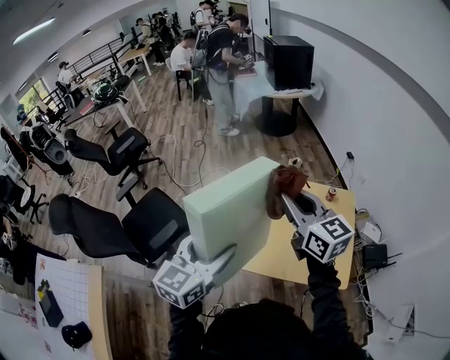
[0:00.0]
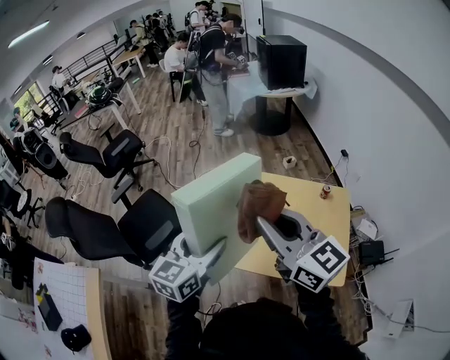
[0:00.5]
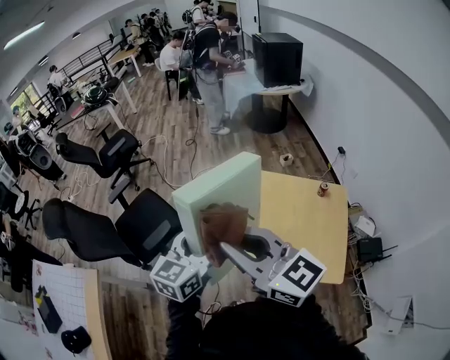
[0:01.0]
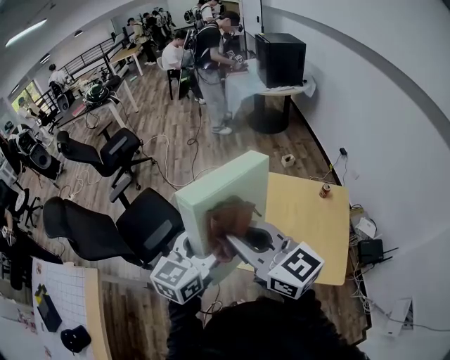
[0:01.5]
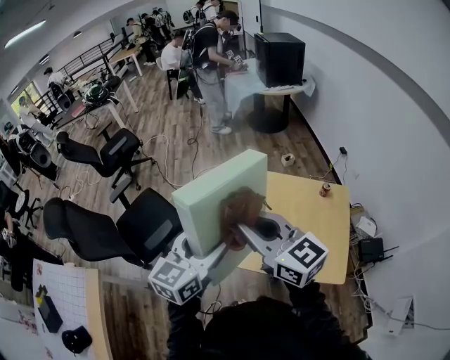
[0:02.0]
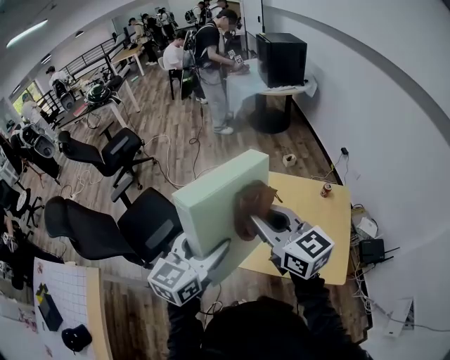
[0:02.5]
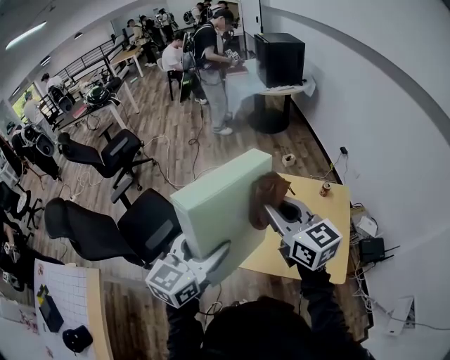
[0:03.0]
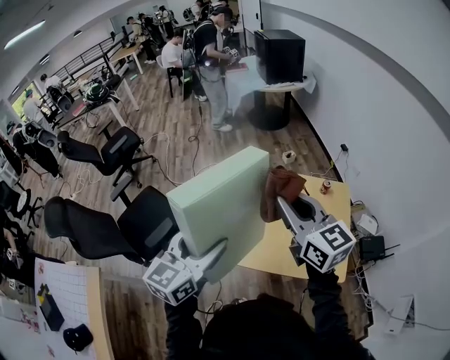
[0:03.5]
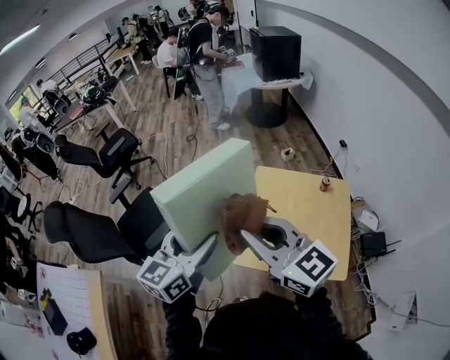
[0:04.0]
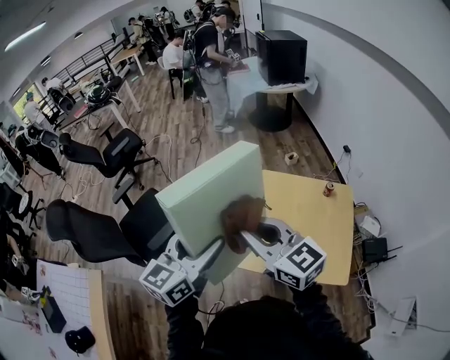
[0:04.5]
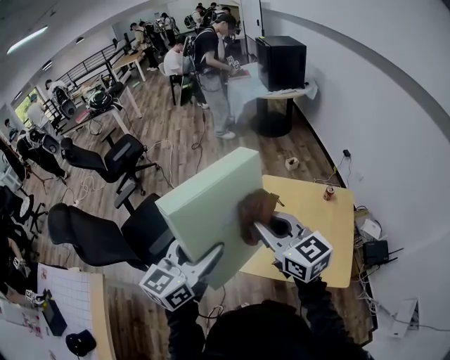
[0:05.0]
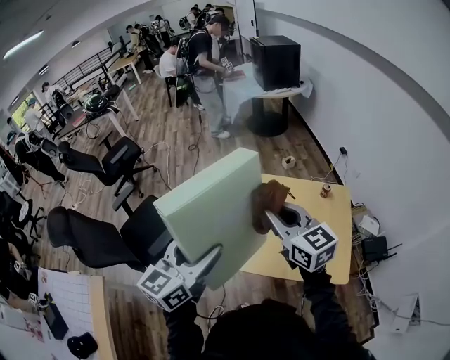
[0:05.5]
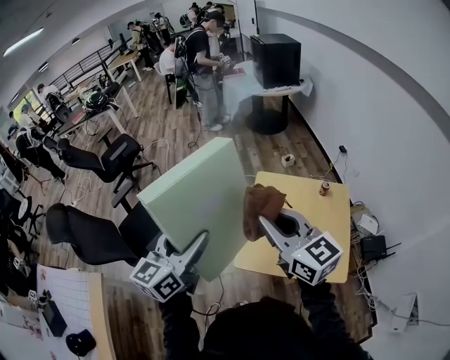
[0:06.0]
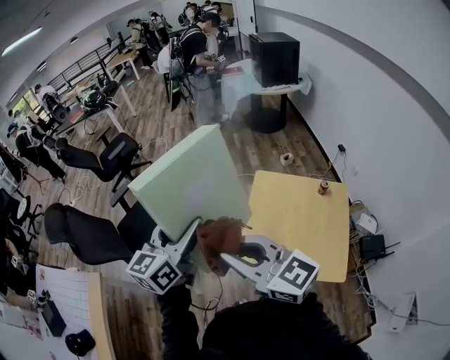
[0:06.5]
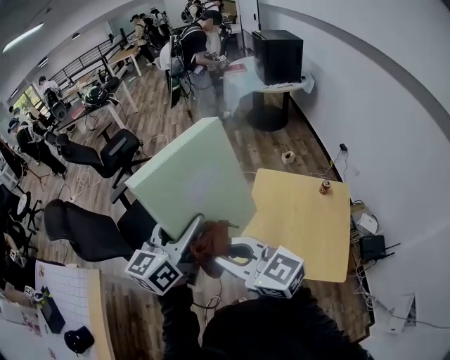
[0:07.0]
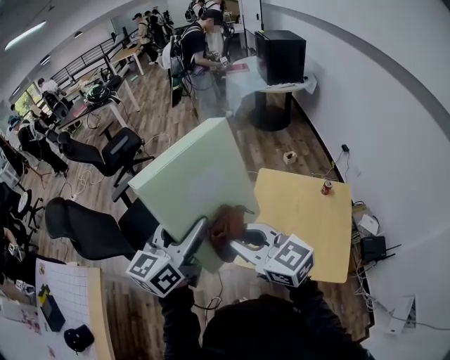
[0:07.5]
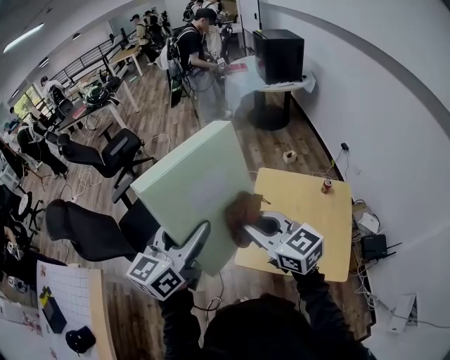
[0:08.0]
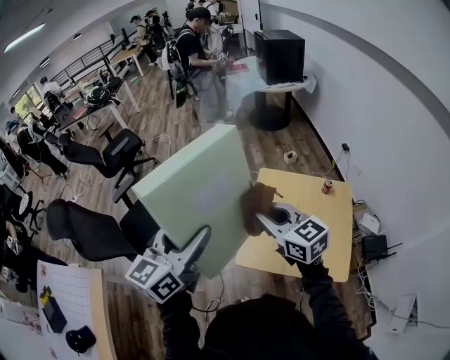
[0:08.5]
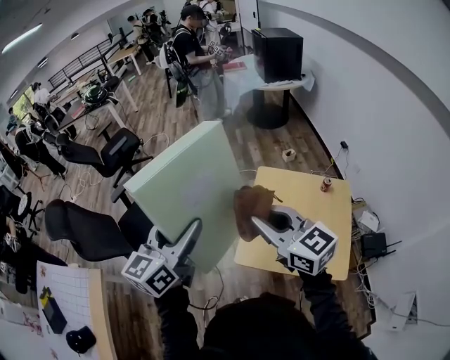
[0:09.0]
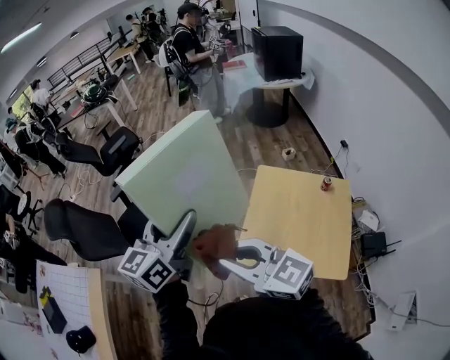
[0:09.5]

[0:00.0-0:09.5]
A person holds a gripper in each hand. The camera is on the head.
0.0 to 2.0 s: The right gripper heads to the left and backward, covering approximately 10 cm.
2.0 to 4.0 s: The right gripper moves approximately 10 cm to the right and comes back.
4.0 to 5.5 s: The right gripper is displaced forward, to the right and downward by approximately 10 cm.
5.5 to 7.5 s: The right gripper is displaced to the left and backward by about 15 cm, and changes its angle by some 30 degrees, while the left gripper moves roughly 5 cm.
7.5 to 9.5 s: The right gripper moves approximately 10 cm to the right and comes back.

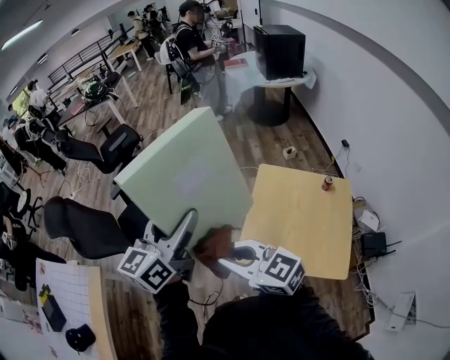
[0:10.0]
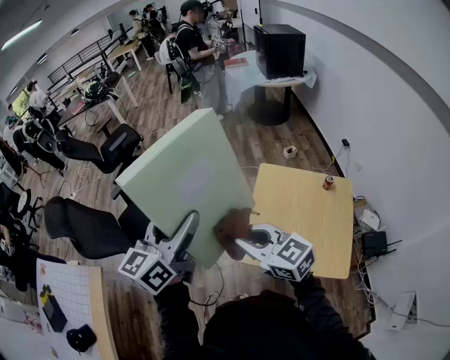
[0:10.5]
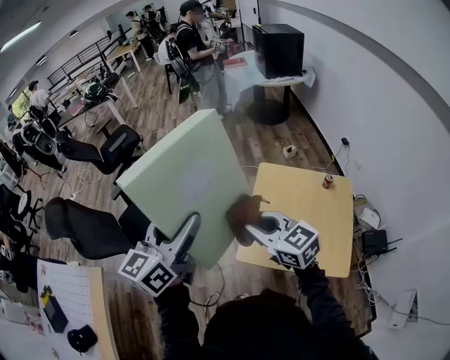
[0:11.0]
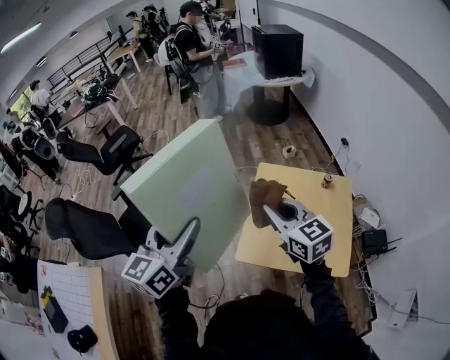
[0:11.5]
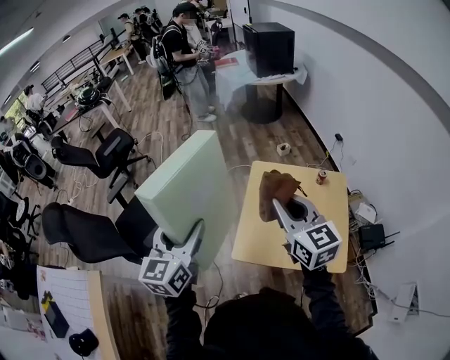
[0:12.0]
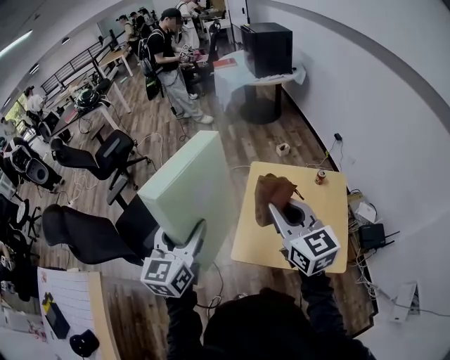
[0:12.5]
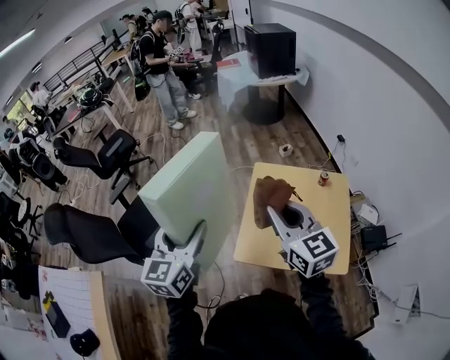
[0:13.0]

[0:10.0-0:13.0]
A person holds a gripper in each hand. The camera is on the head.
10.0 to 11.5 s: The right gripper is displaced to the right and forward by some 20 cm, and rotates some 30 degrees.
11.5 to 13.0 s: The right gripper changes place by roughly 5 cm; the left gripper ends up roughly 5 cm from where it was.

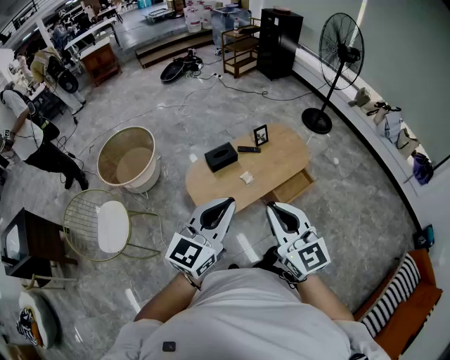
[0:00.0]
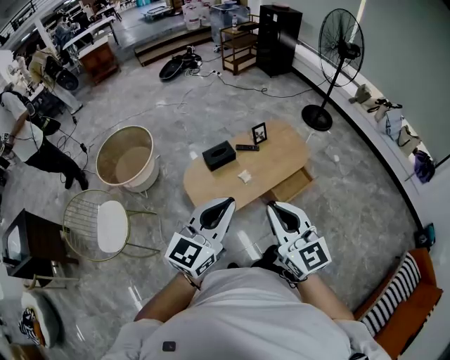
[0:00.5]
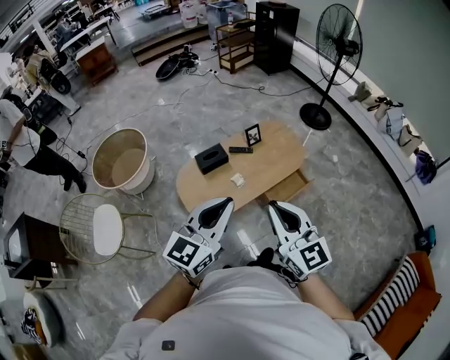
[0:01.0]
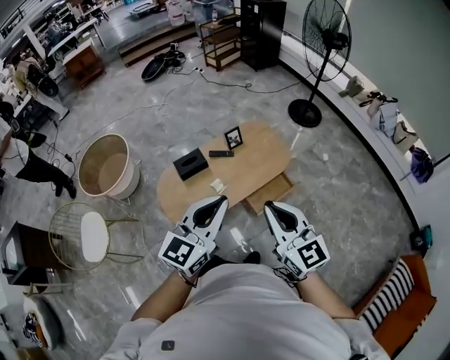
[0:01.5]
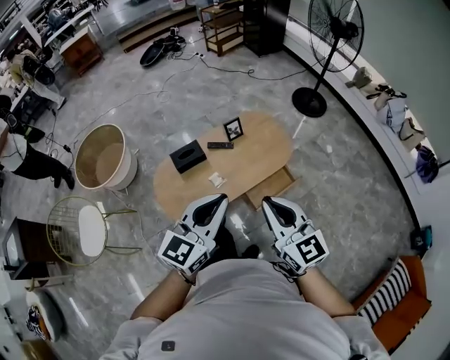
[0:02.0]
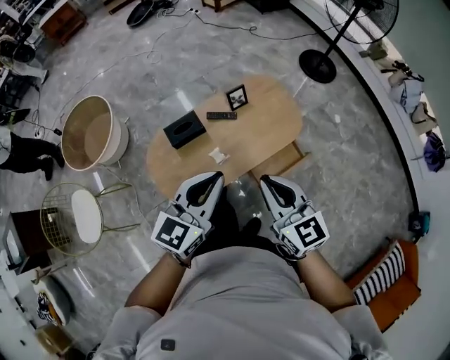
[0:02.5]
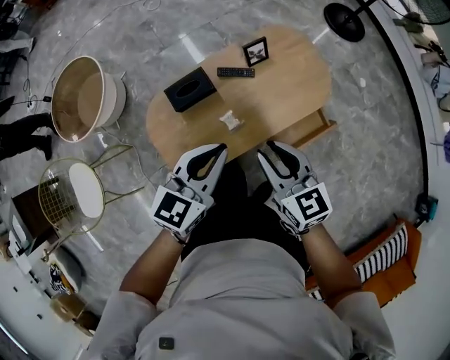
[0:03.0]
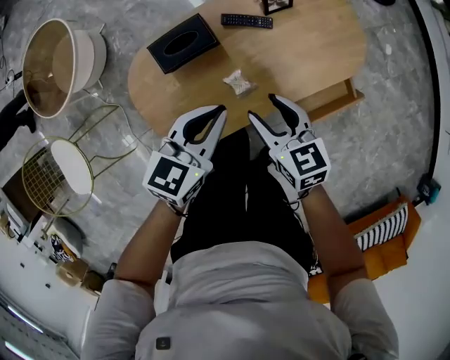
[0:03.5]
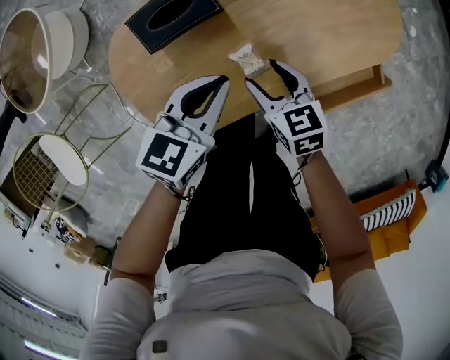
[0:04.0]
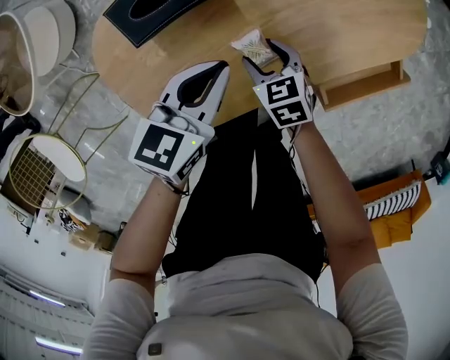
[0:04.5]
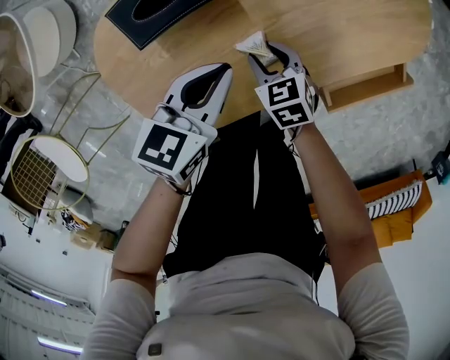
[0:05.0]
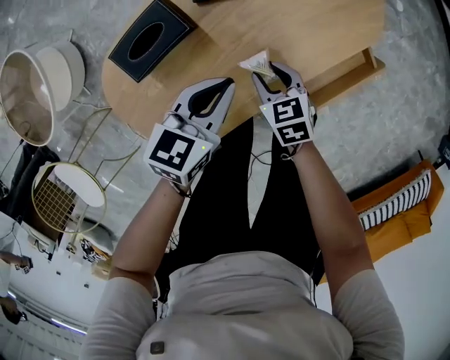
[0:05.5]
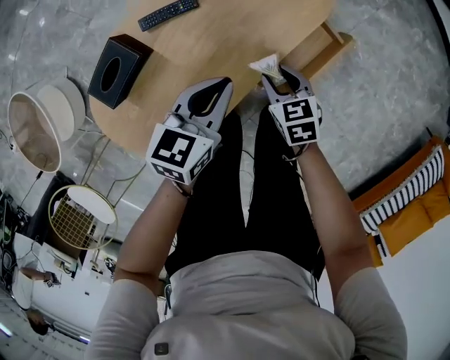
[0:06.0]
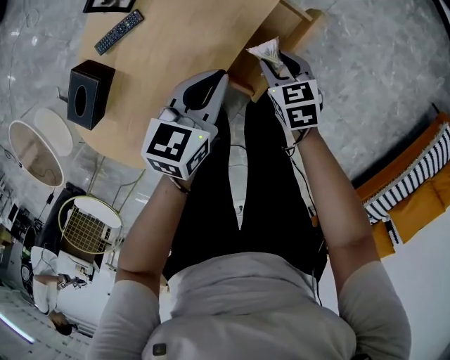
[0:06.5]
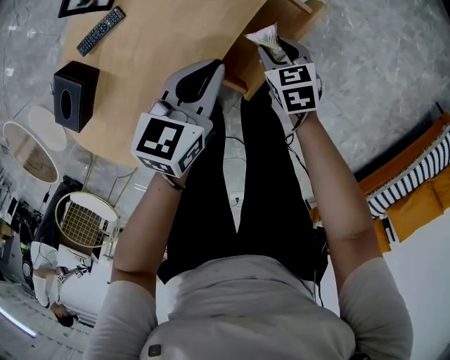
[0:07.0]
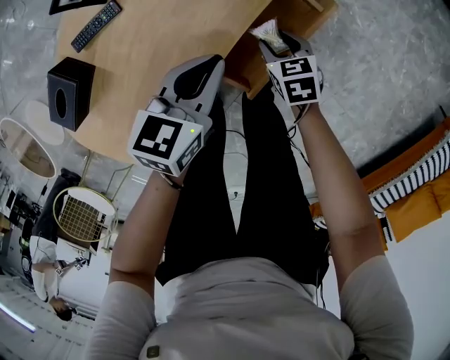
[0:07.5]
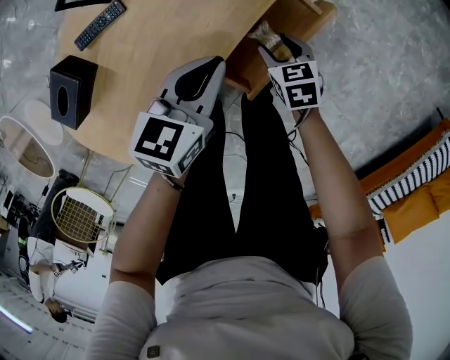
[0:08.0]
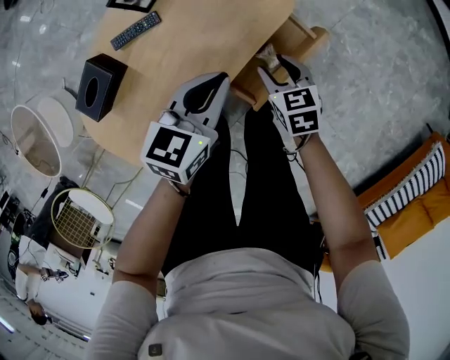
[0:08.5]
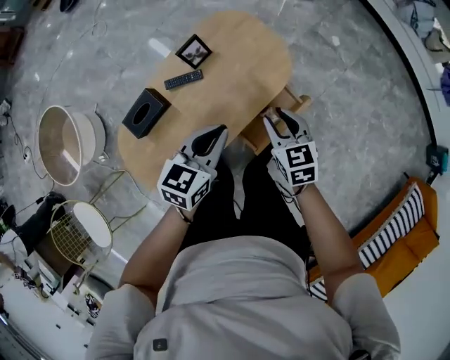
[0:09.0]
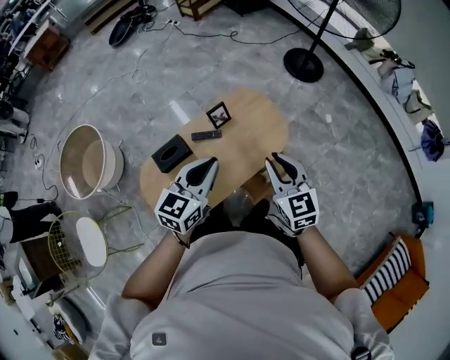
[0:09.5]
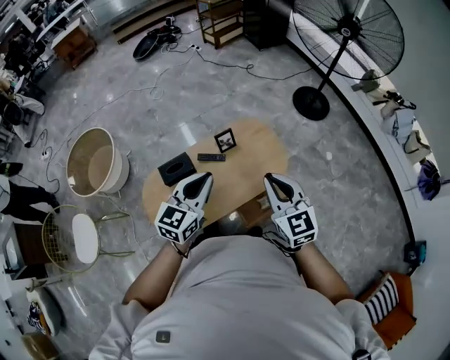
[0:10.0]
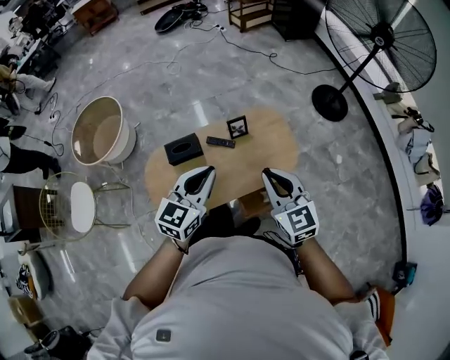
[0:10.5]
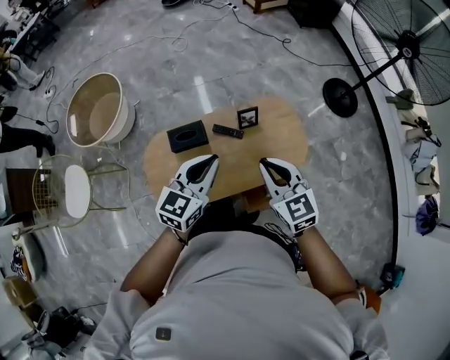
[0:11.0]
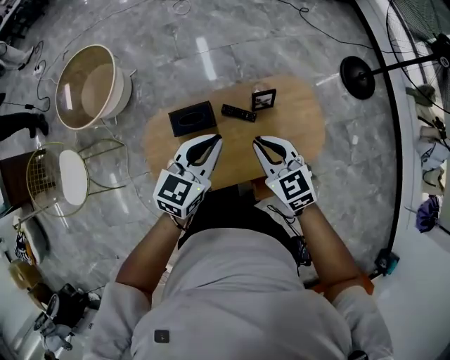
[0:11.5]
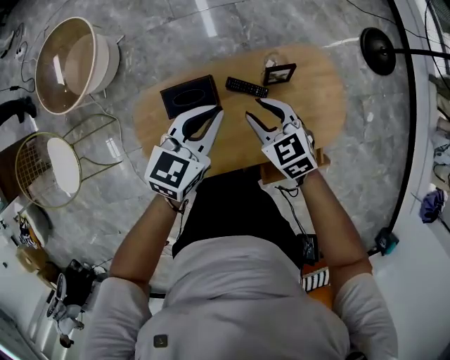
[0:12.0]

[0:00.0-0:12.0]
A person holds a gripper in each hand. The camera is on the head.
0.0 to 2.0 s: The two grippers go approximately 30 cm to the right and forward.
2.0 to 4.0 s: The grippers both shift downward and forward by approximately 60 cm. The left gripper swivels approximately 40 degrees; the right gripper tips its fingers downward by roughly 40 degrees, and opens up.
4.0 to 6.0 s: Both grippers travel together to the right, some 20 cm. The right gripper turns by about 20 degrees, and closes.
6.0 to 8.0 s: Both grippers travel together to the right and downward, roughly 20 cm.
8.0 to 10.0 s: Both grippers travel together upward, roughly 60 cm. The right gripper angles its fingers upward, by approximately 50 degrees, and closes. The left gripper turns by about 40 degrees.
10.0 to 12.0 s: The right gripper travels downward, forward and to the left by approximately 50 cm, turns by approximately 40 degrees, and opens its fingers. The left gripper moves forward, downward and to the left, roughly 35 cm, and swivels about 20 degrees.

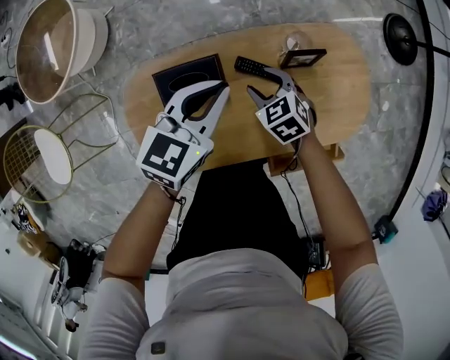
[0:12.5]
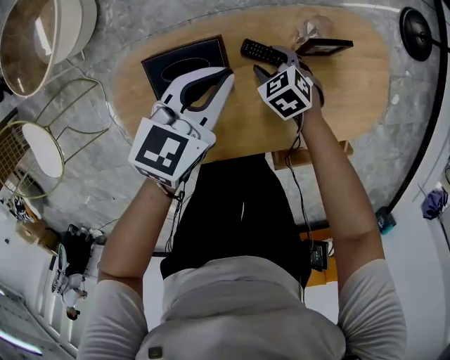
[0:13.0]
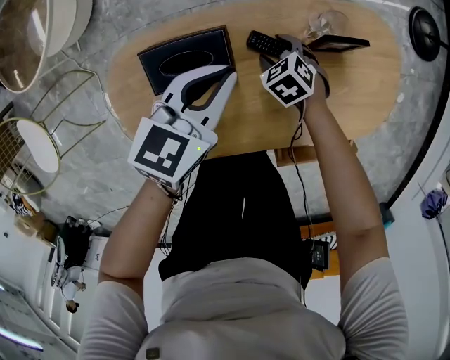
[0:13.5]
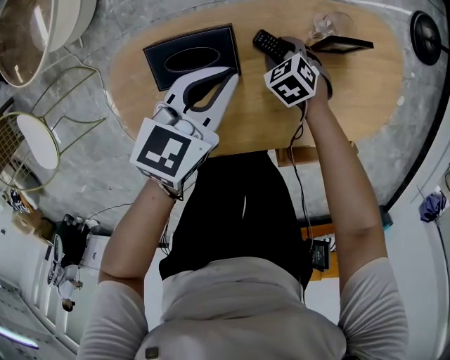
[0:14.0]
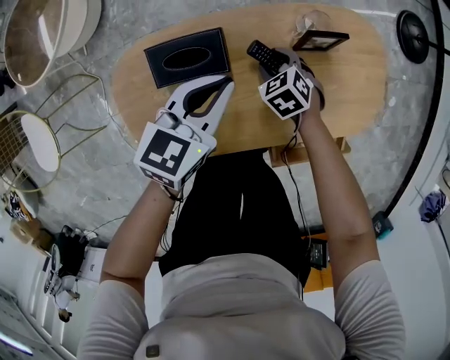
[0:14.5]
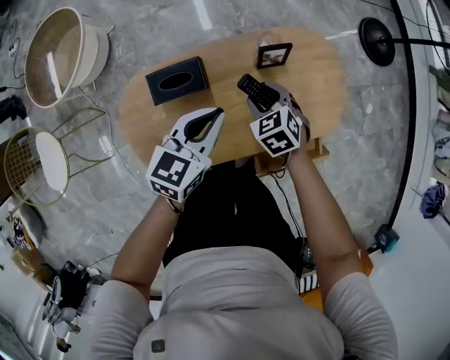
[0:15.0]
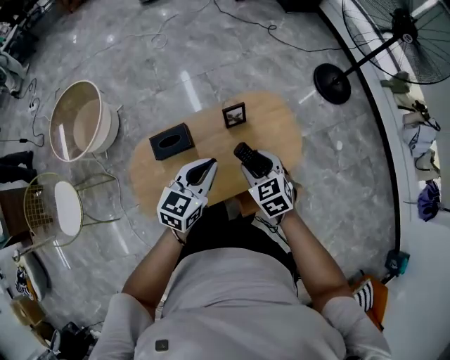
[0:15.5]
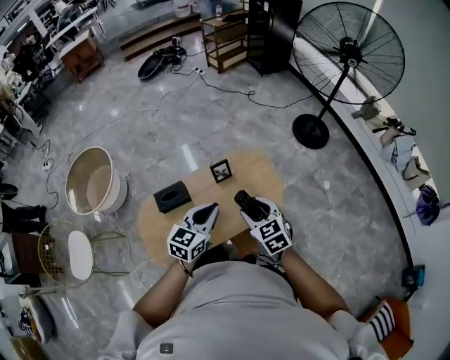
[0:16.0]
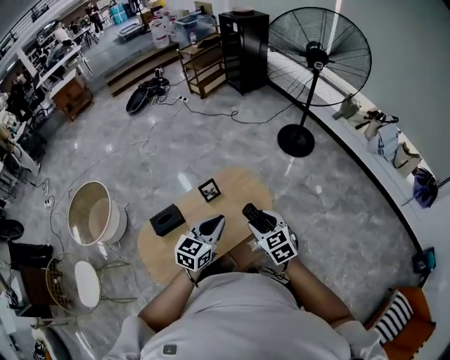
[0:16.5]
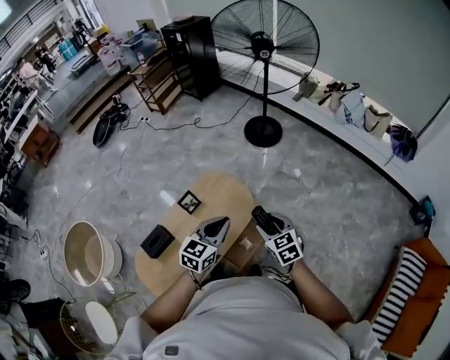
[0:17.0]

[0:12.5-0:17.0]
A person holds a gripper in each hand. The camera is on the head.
12.5 to 14.5 s: The left gripper heads downward, covering some 5 cm. The right gripper shifts some 10 cm downward.
14.5 to 17.0 s: The two grippers travel together, about 50 cm. The right gripper points its fingers approximately 30 degrees further upward. The left gripper turns by approximately 40 degrees.
